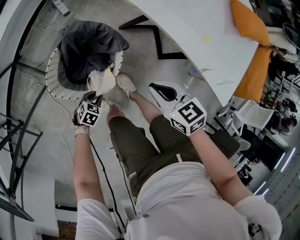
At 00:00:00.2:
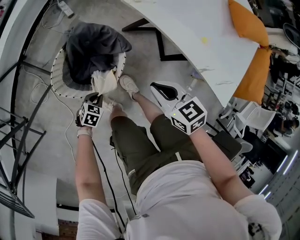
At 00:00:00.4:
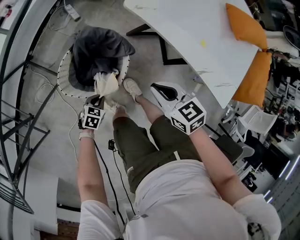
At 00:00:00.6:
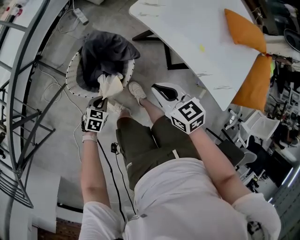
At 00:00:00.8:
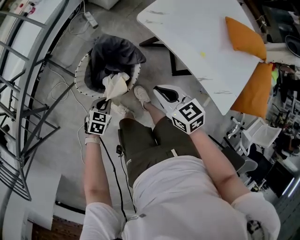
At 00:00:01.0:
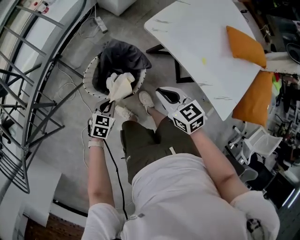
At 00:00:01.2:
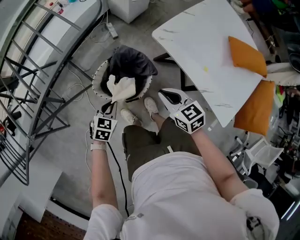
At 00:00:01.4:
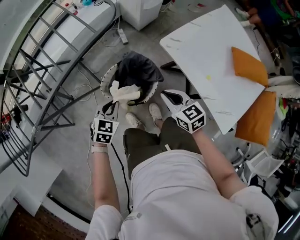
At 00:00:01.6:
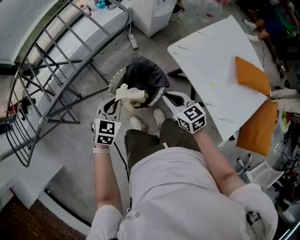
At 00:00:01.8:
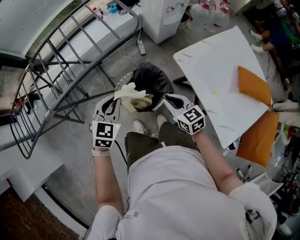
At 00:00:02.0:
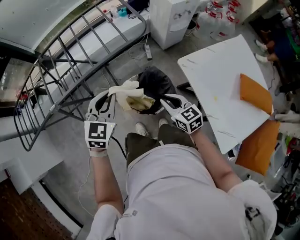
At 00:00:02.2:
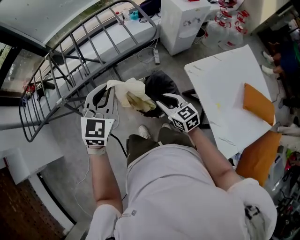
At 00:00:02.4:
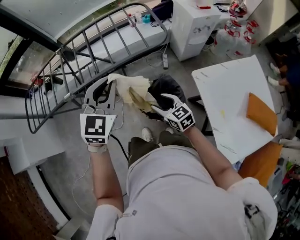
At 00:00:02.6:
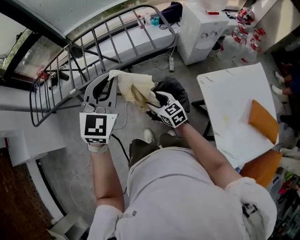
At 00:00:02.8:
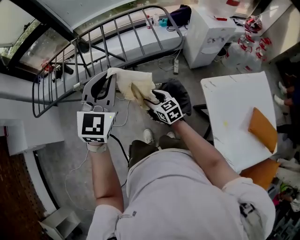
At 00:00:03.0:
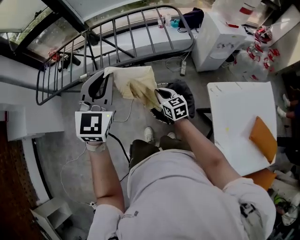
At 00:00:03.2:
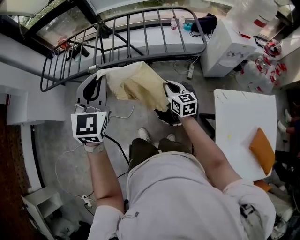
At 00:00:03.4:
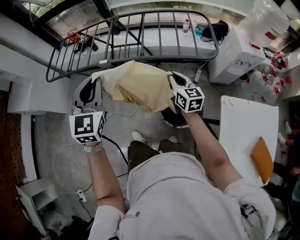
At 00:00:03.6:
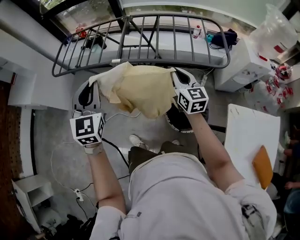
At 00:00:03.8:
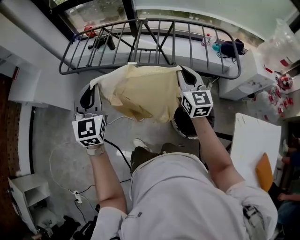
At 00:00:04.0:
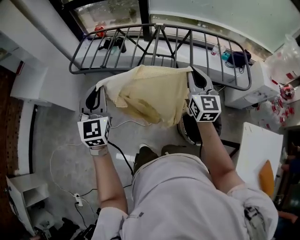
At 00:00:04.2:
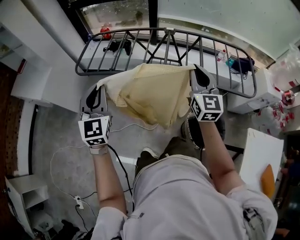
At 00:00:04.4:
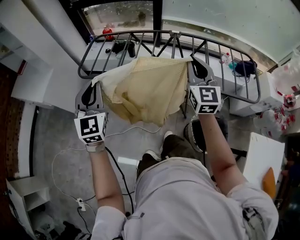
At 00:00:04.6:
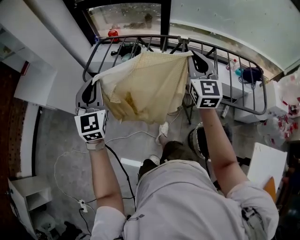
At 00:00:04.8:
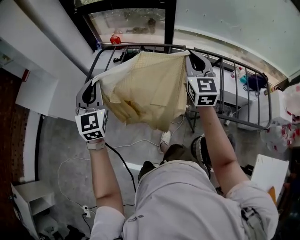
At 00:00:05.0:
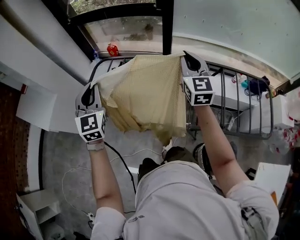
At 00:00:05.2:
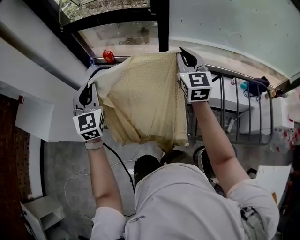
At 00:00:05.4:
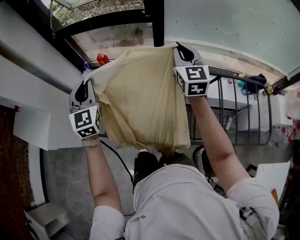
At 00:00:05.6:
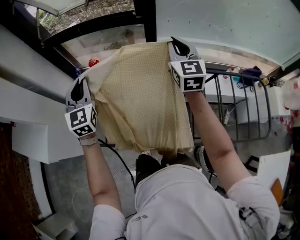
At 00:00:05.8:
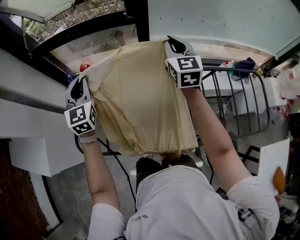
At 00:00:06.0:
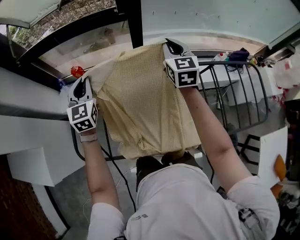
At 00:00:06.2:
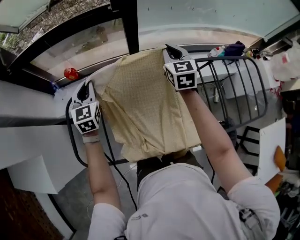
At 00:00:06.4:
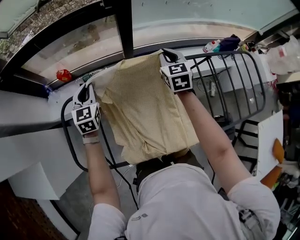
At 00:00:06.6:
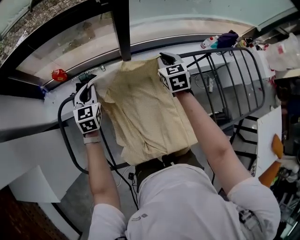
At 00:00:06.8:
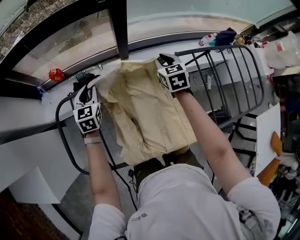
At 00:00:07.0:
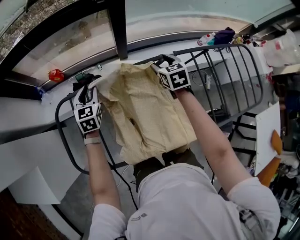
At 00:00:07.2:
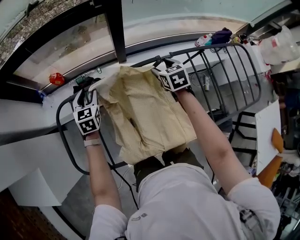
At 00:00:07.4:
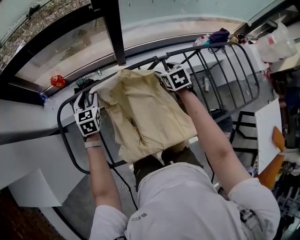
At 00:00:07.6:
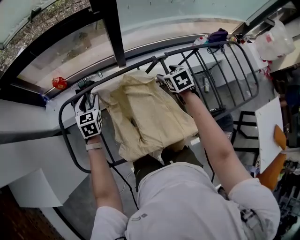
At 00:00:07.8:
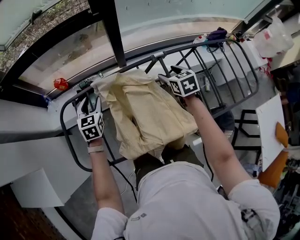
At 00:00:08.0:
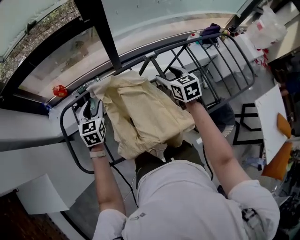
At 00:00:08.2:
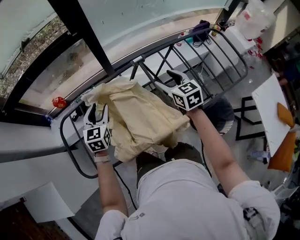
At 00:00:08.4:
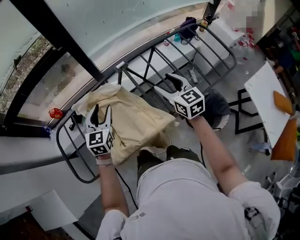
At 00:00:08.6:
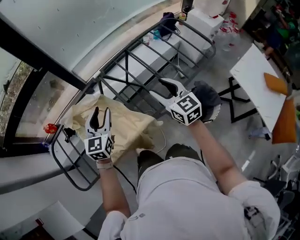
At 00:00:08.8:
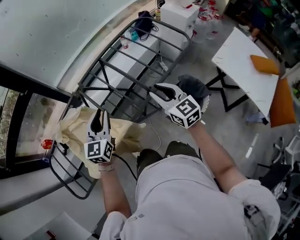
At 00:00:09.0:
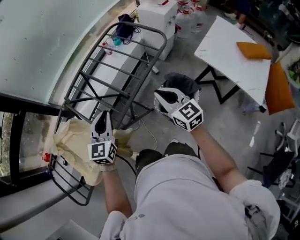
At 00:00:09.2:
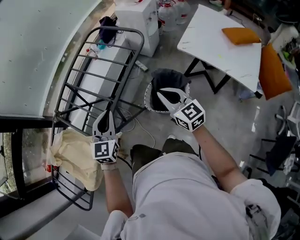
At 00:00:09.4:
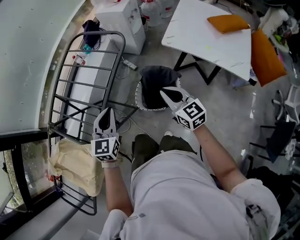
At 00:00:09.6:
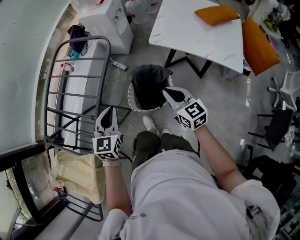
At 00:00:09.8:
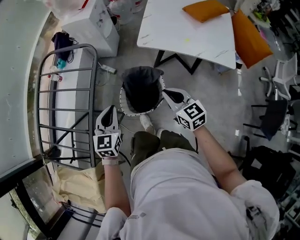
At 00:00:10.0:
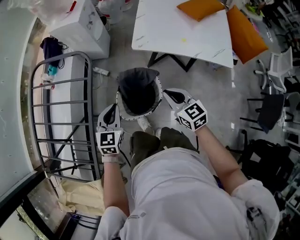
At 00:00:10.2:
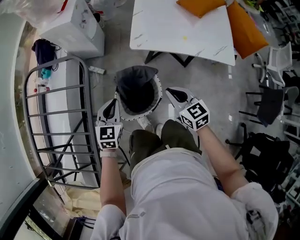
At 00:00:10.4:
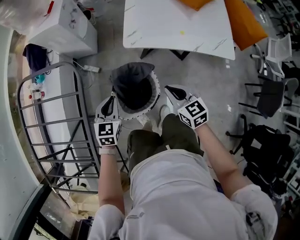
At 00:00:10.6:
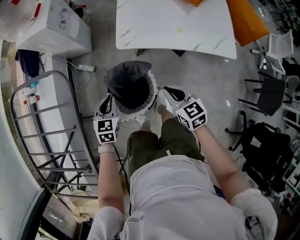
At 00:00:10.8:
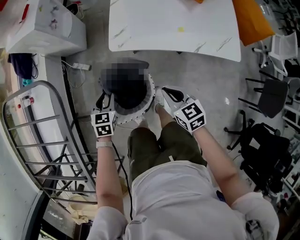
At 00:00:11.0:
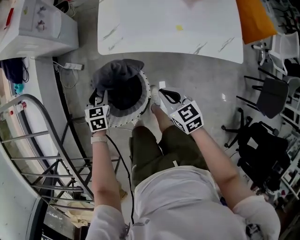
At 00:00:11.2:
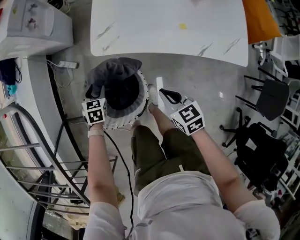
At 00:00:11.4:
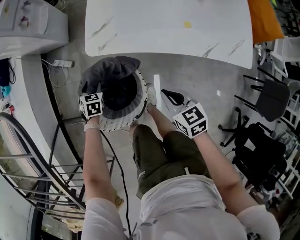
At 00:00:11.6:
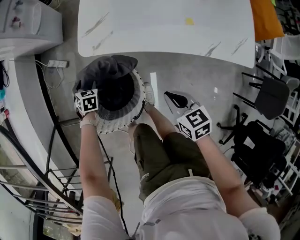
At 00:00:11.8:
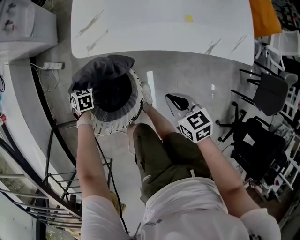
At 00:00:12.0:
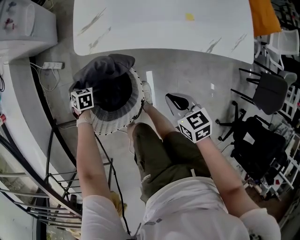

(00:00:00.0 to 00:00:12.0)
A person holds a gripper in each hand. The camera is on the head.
00:00:00.0 - 00:00:01.6: The left gripper travels upward by some 40 cm, and changes its angle by approximately 40 degrees. The right gripper travels upward by approximately 20 cm, and rotates approximately 20 degrees.
00:00:01.6 - 00:00:03.0: The left gripper heads upward, covering approximately 30 cm, and tilts its fingers some 30 degrees upward; the right gripper changes place by roughly 20 cm, swivels roughly 20 degrees, and opens, then closes again.
00:00:03.0 - 00:00:04.4: The left gripper goes approximately 50 cm to the left, and swivels about 30 degrees. The right gripper goes roughly 50 cm to the left, upward and forward, and changes its angle by about 40 degrees.
00:00:04.4 - 00:00:06.0: The pair of grippers is taken forward, approximately 50 cm.
00:00:06.0 - 00:00:07.6: The right gripper heads downward and backward, covering roughly 25 cm, angles its fingers downward, by about 40 degrees, and opens its fingers; the left gripper heads downward, covering roughly 15 cm, changes its angle by some 20 degrees, and opens.
00:00:07.6 - 00:00:09.0: The pair of grippers is taken about 50 cm. The left gripper turns by about 50 degrees, and closes up, while the right gripper angles its fingers upward, by roughly 40 degrees, and closes its fingers.
00:00:09.0 - 00:00:10.4: The left gripper shifts by some 50 cm, and changes its angle by some 50 degrees. The right gripper moves some 40 cm, and rotates about 50 degrees.
00:00:10.4 - 00:00:12.0: The left gripper is displaced downward by some 40 cm, points its fingers approximately 30 degrees further downward, and opens up; the right gripper travels downward and to the right by approximately 25 cm, and rotates about 20 degrees.

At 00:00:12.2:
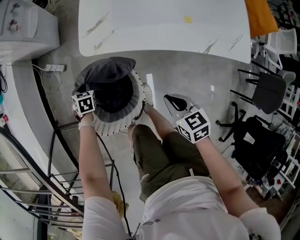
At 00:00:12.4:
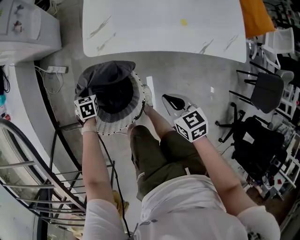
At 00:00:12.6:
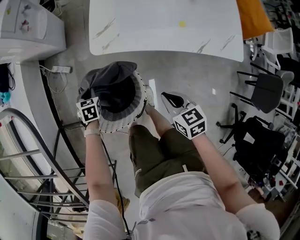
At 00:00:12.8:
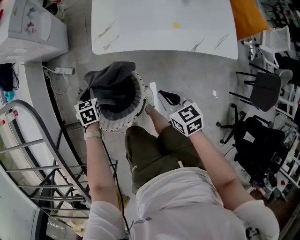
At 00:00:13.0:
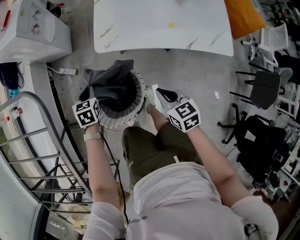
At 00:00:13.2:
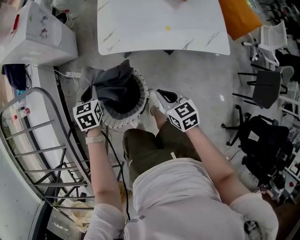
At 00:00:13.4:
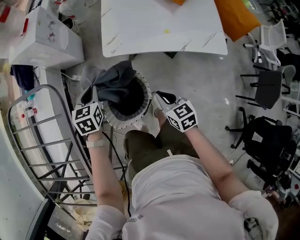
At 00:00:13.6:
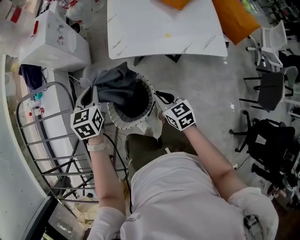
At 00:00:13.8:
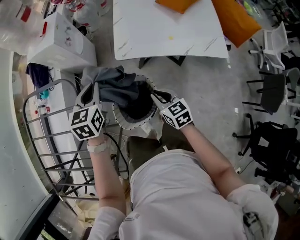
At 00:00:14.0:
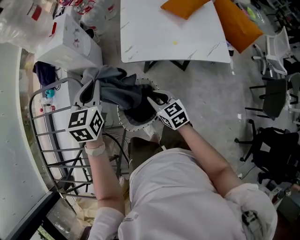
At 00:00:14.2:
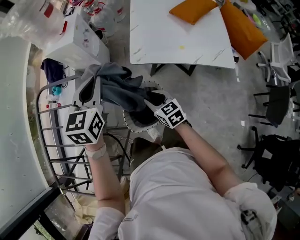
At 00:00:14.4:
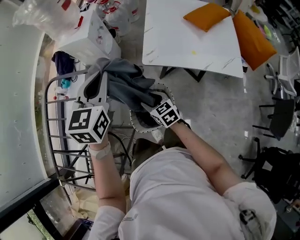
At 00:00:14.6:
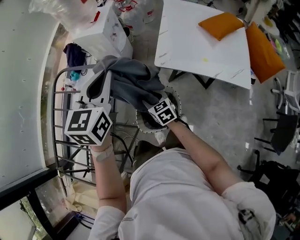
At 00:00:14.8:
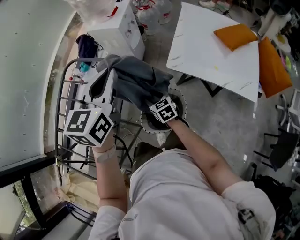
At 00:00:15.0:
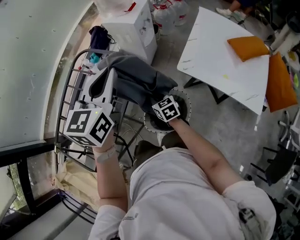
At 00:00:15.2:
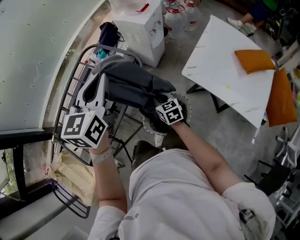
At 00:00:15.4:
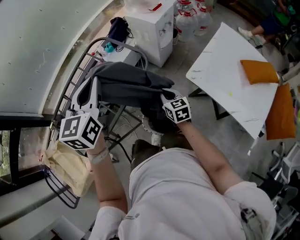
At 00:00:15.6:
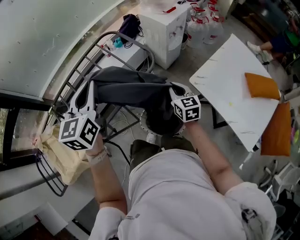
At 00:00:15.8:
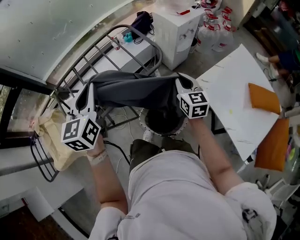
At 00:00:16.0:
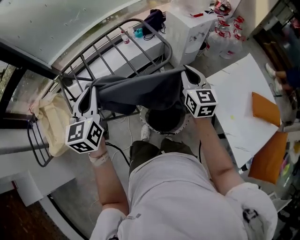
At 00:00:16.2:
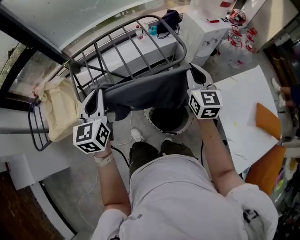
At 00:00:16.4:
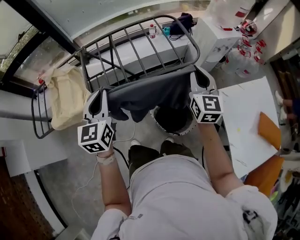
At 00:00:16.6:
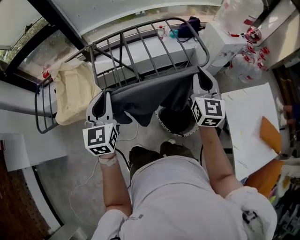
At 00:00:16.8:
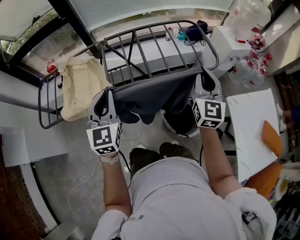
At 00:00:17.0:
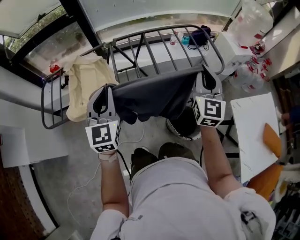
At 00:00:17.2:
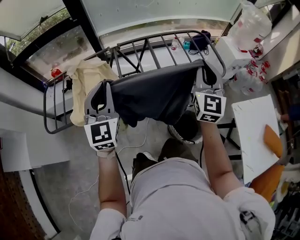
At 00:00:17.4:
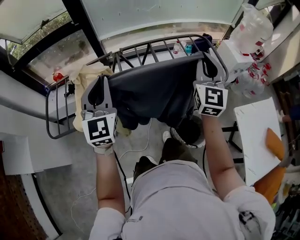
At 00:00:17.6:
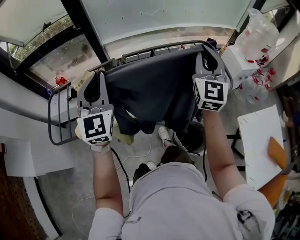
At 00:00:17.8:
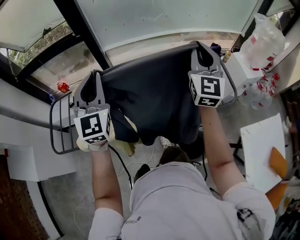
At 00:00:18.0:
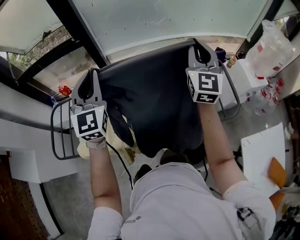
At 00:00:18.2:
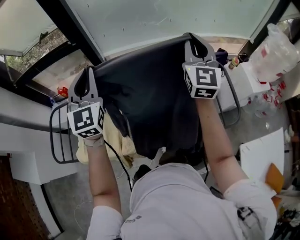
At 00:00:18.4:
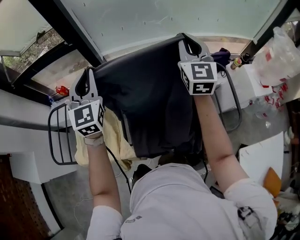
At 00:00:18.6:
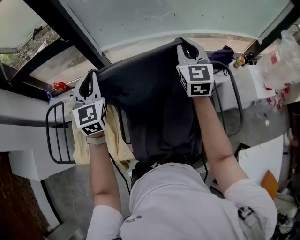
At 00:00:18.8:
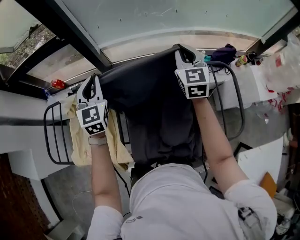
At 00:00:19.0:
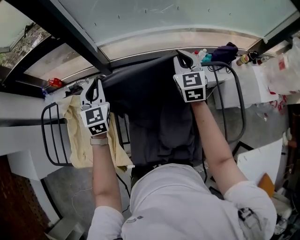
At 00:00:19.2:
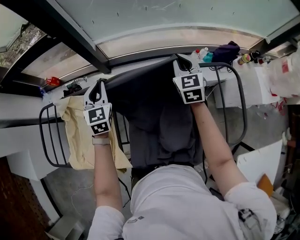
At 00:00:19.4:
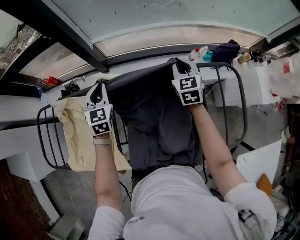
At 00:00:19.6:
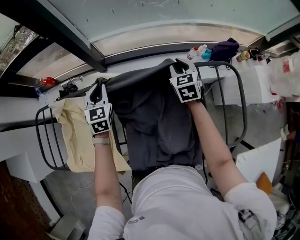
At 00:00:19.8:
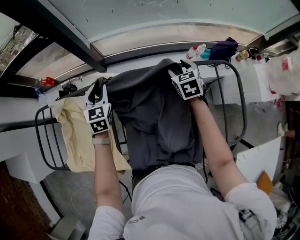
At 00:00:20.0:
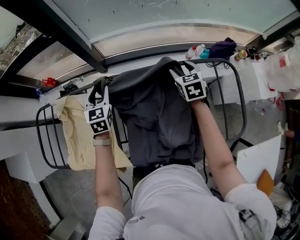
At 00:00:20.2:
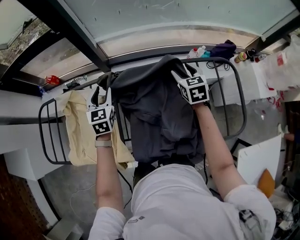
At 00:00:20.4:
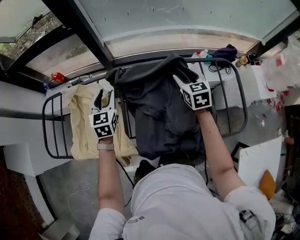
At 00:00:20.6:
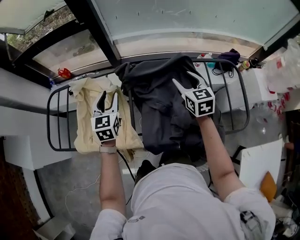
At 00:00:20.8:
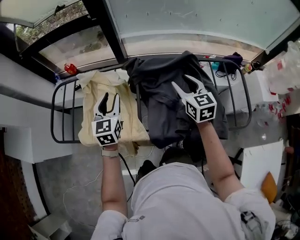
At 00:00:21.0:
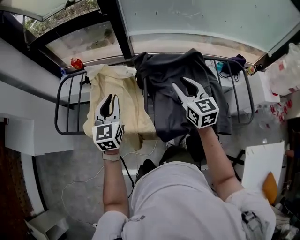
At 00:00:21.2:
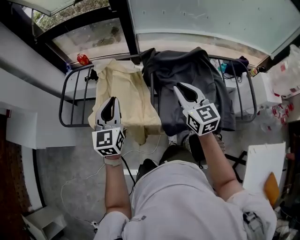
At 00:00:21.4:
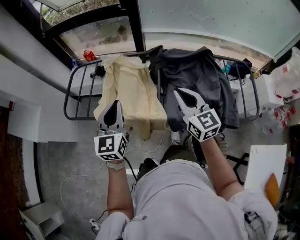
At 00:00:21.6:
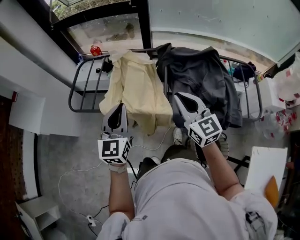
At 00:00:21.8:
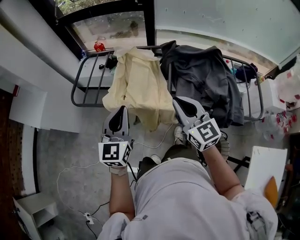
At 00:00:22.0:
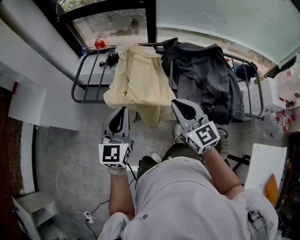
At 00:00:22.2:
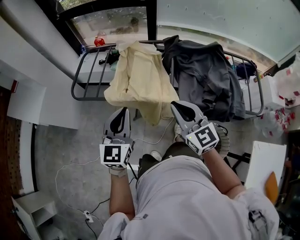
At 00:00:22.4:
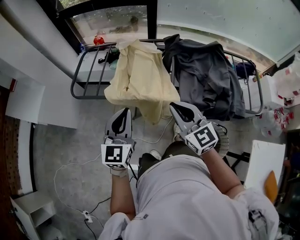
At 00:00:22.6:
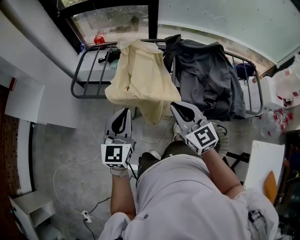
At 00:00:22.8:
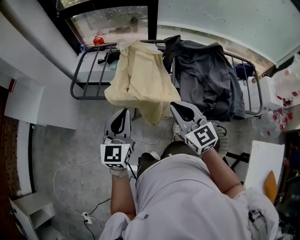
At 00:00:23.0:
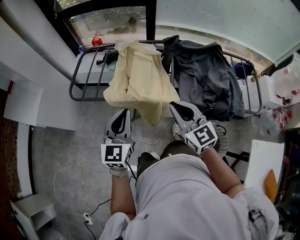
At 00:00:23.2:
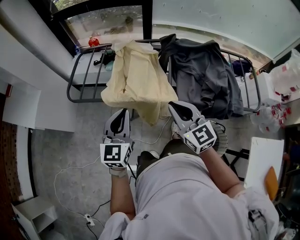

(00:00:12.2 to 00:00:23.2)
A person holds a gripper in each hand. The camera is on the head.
00:00:12.2 - 00:00:13.8: The right gripper goes roughly 20 cm upward and to the left. The left gripper shifts roughly 50 cm upward, and tilts its fingers about 40 degrees upward.
00:00:13.8 - 00:00:15.4: The right gripper ends up about 20 cm from where it was, rotates about 30 degrees, and opens, then closes once more. Meanwhile the left gripper shifts some 20 cm upward, and swivels roughly 40 degrees.
00:00:15.4 - 00:00:17.0: The right gripper heads upward, covering roughly 25 cm, and tips its fingers upward by approximately 30 degrees. The left gripper shifts by some 40 cm, and swivels some 50 degrees.
00:00:17.0 - 00:00:18.4: The two grippers go some 40 cm forward.
00:00:18.4 - 00:00:20.0: The two grippers go some 30 cm downward. The right gripper tilts its fingers approximately 40 degrees downward, and opens. Meanwhile the left gripper changes its angle by about 30 degrees, and opens its fingers.
00:00:20.0 - 00:00:21.6: The pair of grippers is taken backward and to the left, about 50 cm. The left gripper swivels approximately 20 degrees, and closes; the right gripper is displaced upward by about 15 cm, points its fingers approximately 30 degrees further upward, and closes up.
00:00:21.6 - 00:00:23.2: The right gripper moves to the left and backward, about 10 cm, while the left gripper goes approximately 10 cm backward and to the left.
